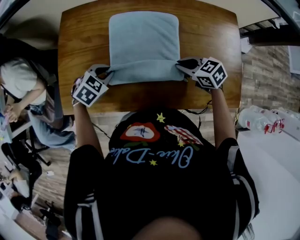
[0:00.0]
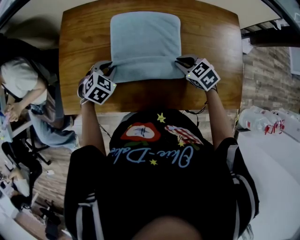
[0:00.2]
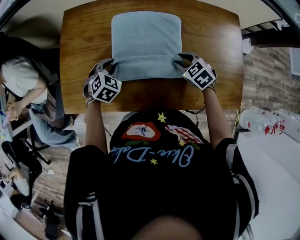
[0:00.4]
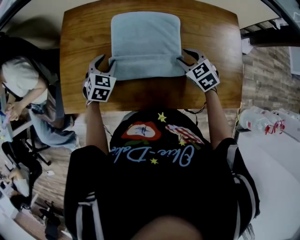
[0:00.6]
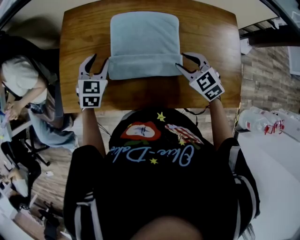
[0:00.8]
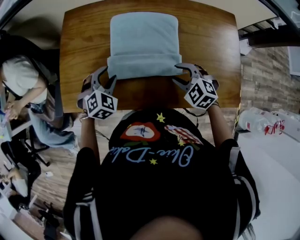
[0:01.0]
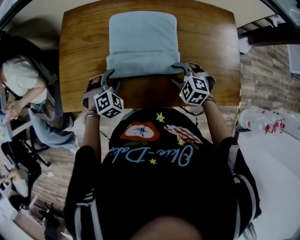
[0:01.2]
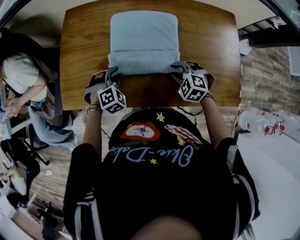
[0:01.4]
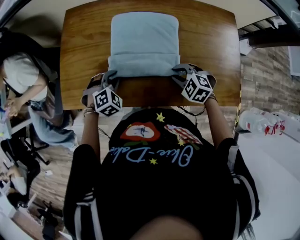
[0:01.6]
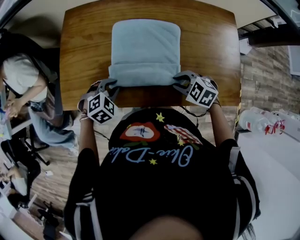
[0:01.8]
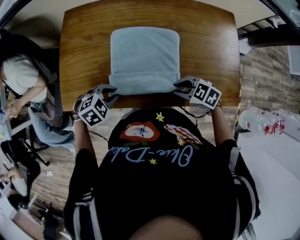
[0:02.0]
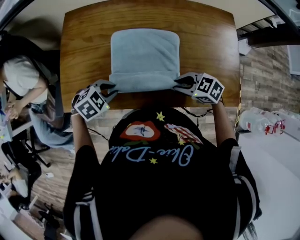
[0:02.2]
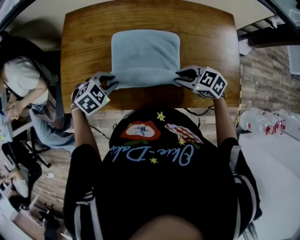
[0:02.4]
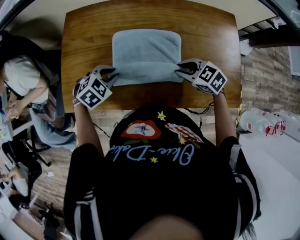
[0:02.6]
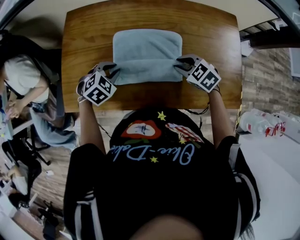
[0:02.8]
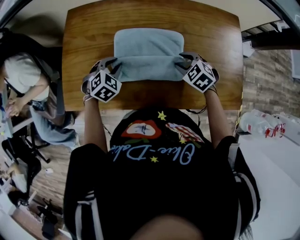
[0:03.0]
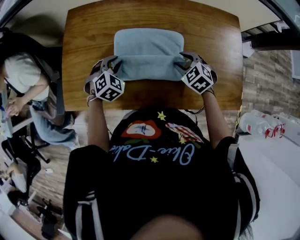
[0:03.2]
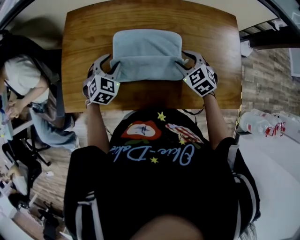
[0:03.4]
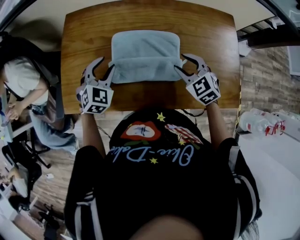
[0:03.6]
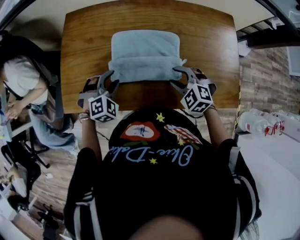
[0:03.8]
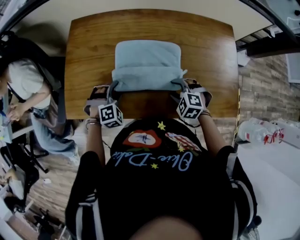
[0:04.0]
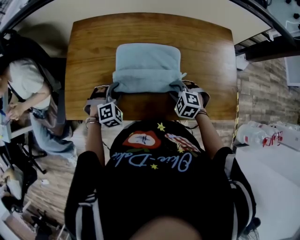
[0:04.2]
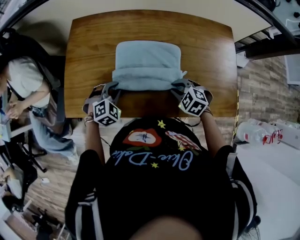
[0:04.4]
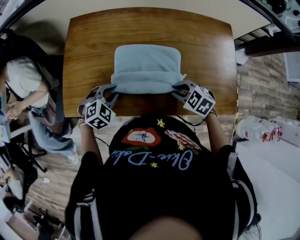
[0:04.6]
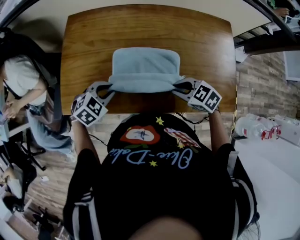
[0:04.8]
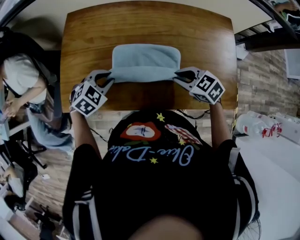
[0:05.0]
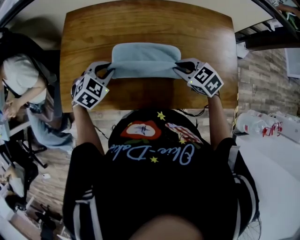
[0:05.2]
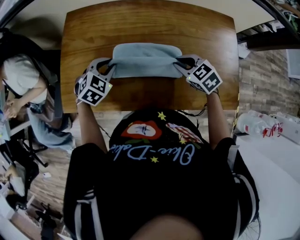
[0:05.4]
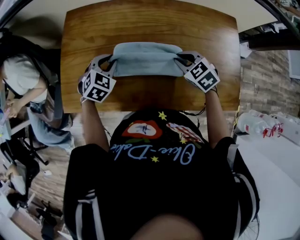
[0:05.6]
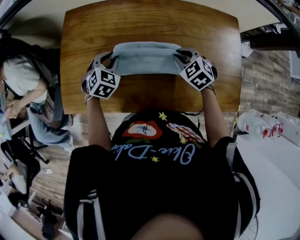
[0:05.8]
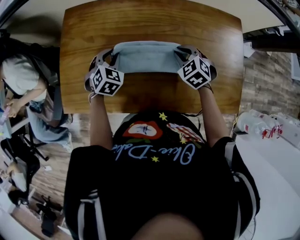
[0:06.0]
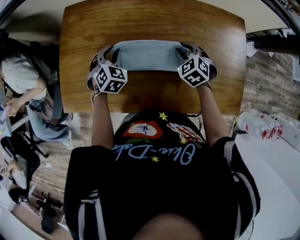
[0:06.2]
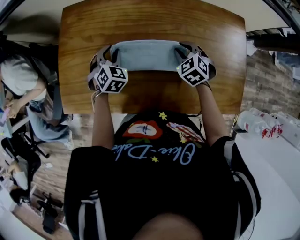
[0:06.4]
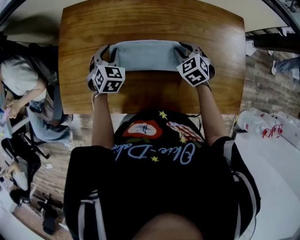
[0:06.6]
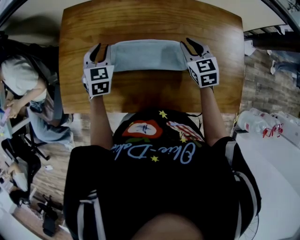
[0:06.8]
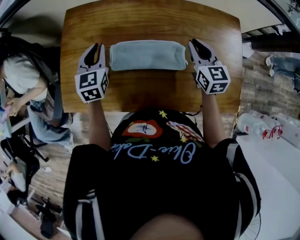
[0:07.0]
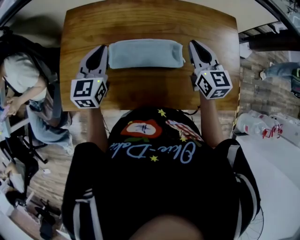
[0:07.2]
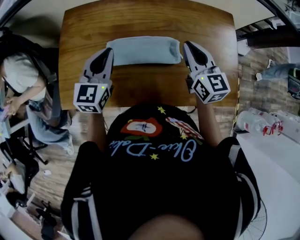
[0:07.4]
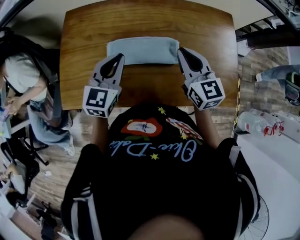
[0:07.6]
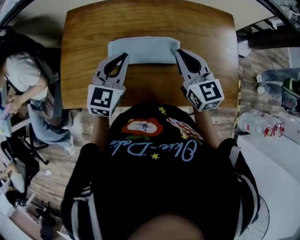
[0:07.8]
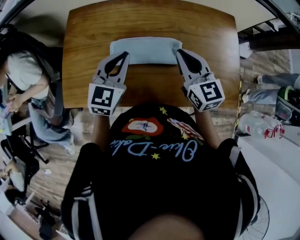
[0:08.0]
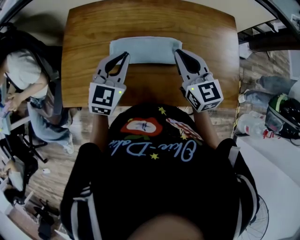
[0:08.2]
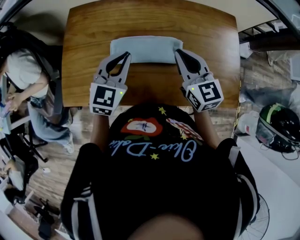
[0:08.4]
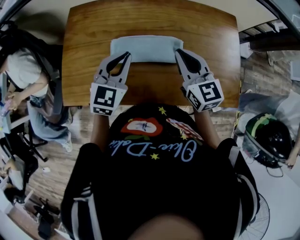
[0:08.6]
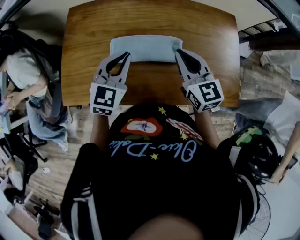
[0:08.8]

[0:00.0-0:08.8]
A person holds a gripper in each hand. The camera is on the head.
0:00.0 to 0:01.4: The left gripper goes forward and returns, about 5 cm each way, and swivels roughly 30 degrees. The right gripper ends up about 5 cm from where it was, and swivels some 40 degrees.
0:01.4 to 0:03.0: The right gripper moves approximately 5 cm.
0:03.0 to 0:04.4: Both grippers travel together backward, approximately 5 cm. The left gripper travels upward and back again, some 5 cm each way, and opens and closes again, while the right gripper goes upward and returns, approximately 5 cm each way, and closes its fingers.
0:04.4 to 0:05.8: The right gripper changes place by about 10 cm; the left gripper ends up about 10 cm from where it was, and rotates approximately 20 degrees.
0:05.8 to 0:07.4: Both grippers move upward, some 15 cm. The right gripper tips its fingers upward by approximately 40 degrees. Meanwhile the left gripper tips its fingers upward by approximately 30 degrees.
0:07.4 to 0:08.8: The right gripper shifts by roughly 5 cm; the left gripper ends up approximately 5 cm from where it was.

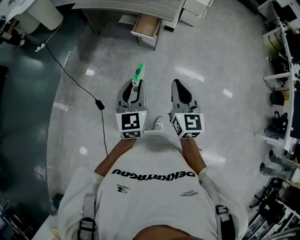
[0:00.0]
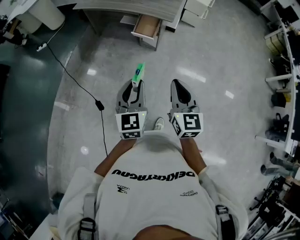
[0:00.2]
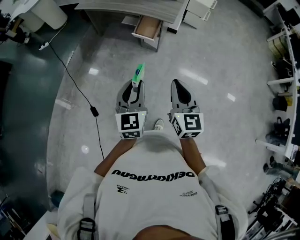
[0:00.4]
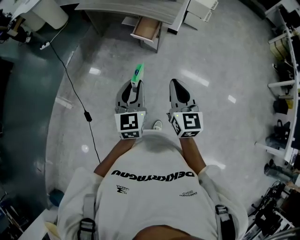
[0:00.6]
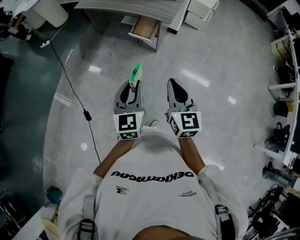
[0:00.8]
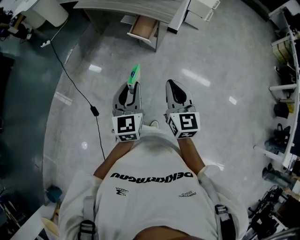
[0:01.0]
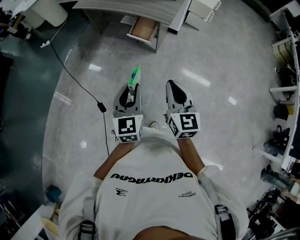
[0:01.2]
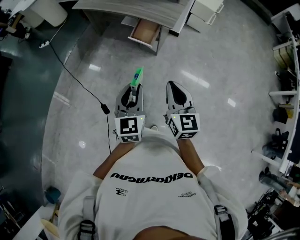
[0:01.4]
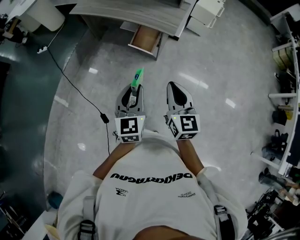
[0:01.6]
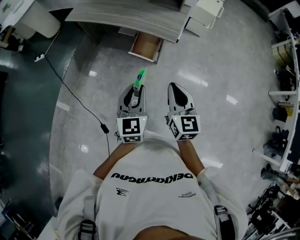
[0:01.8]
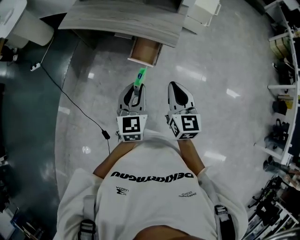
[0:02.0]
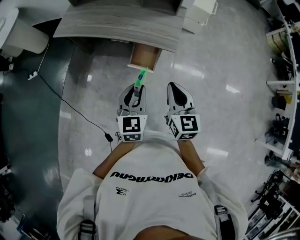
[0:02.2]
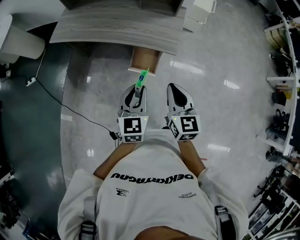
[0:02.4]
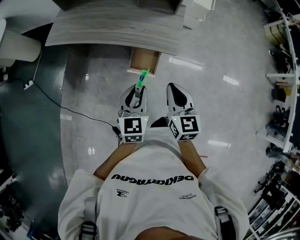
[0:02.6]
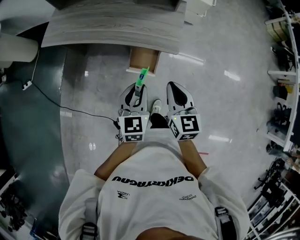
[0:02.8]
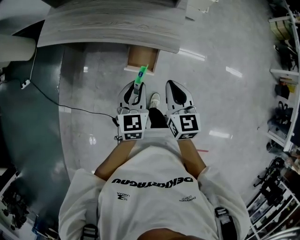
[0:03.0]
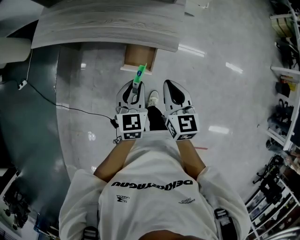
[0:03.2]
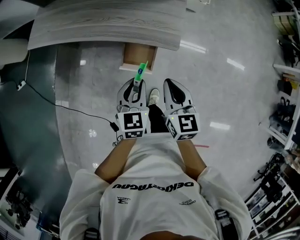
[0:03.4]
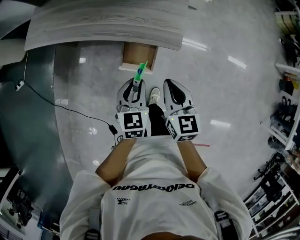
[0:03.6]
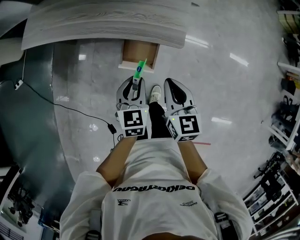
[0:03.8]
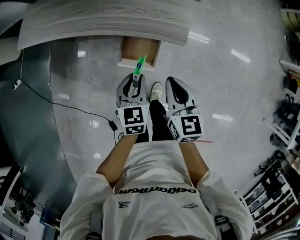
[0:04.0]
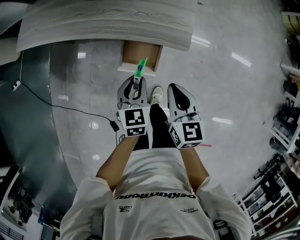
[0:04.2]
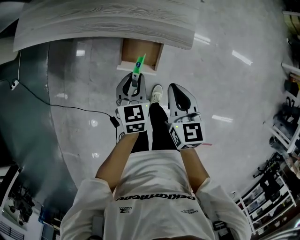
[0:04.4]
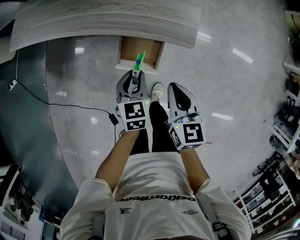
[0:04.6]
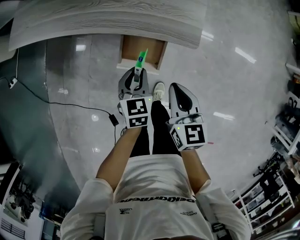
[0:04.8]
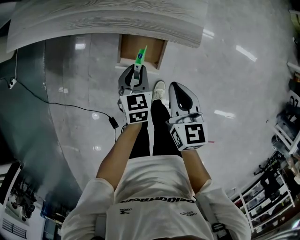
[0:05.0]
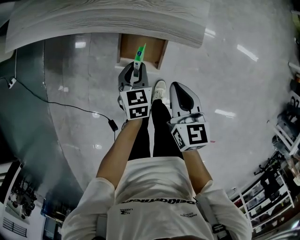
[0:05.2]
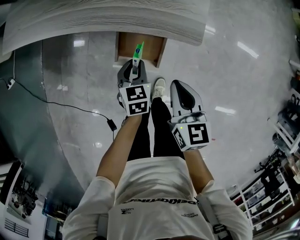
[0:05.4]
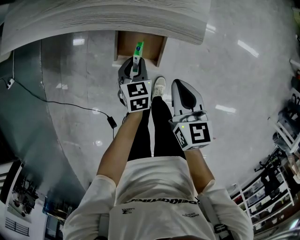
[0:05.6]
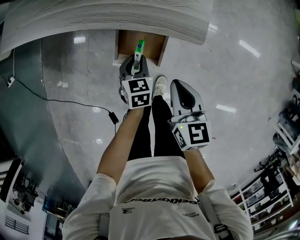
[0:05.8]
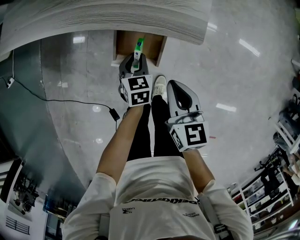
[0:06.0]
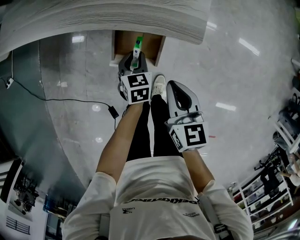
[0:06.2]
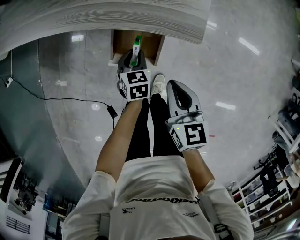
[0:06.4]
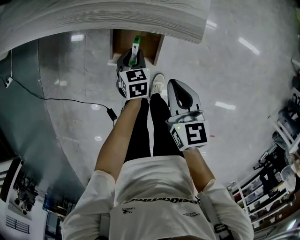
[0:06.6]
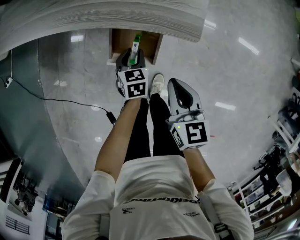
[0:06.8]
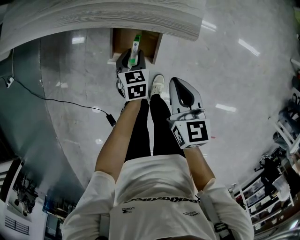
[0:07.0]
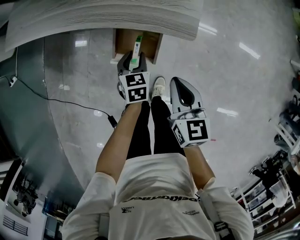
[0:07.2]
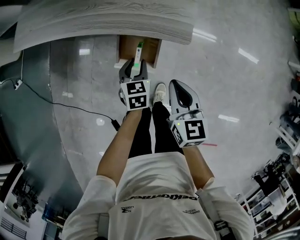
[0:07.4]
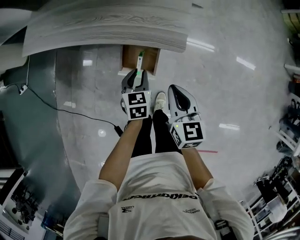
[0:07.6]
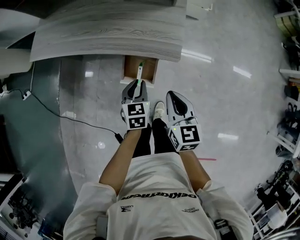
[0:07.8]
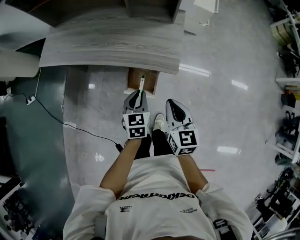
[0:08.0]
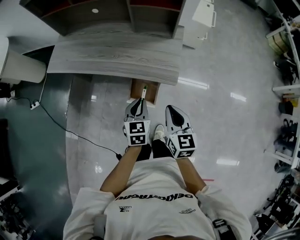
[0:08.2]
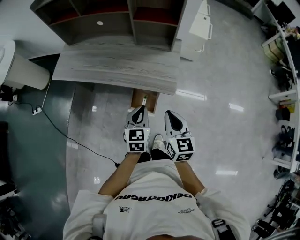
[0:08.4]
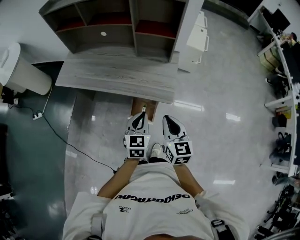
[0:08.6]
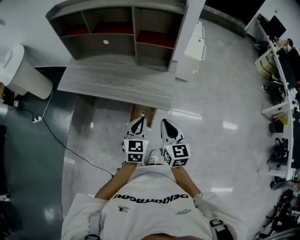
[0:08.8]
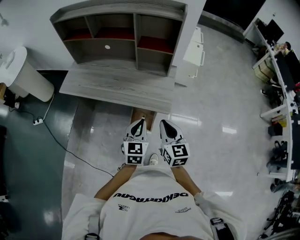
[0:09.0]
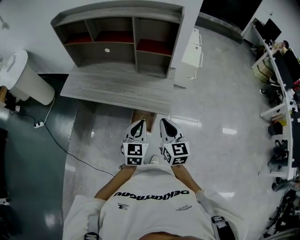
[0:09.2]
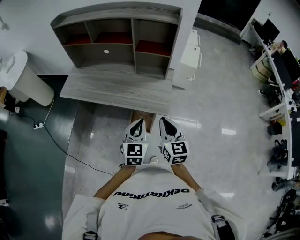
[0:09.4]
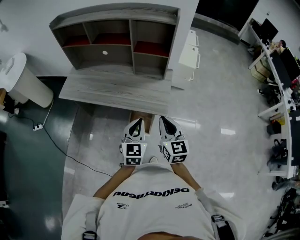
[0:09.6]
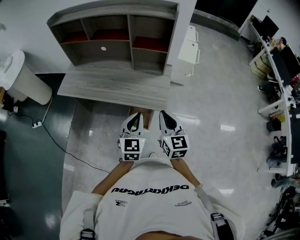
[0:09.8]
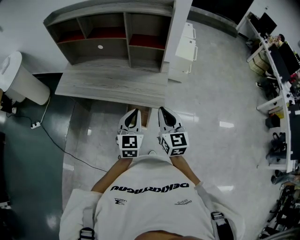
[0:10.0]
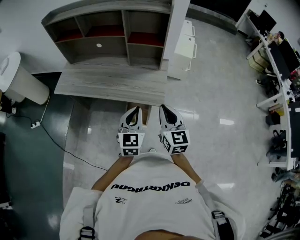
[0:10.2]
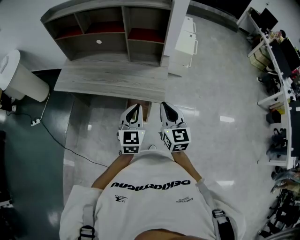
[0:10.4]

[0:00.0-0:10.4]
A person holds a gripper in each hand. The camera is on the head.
0:00.0 to 0:01.4: Both grippers move forward and to the right, about 10 cm.
0:01.4 to 0:03.0: Both grippers move forward, about 30 cm. The left gripper turns by approximately 20 degrees.
0:03.0 to 0:04.4: The grippers both shift downward by approximately 15 cm.
0:04.4 to 0:06.0: The right gripper heads downward, covering about 5 cm, while the left gripper is displaced downward by some 15 cm.
0:06.0 to 0:07.4: The left gripper moves upward, some 5 cm.
0:07.4 to 0:09.0: Both grippers move upward, roughly 30 cm. The left gripper swivels about 30 degrees, and closes up.
0:09.0 to 0:10.4: The right gripper changes place by about 5 cm.

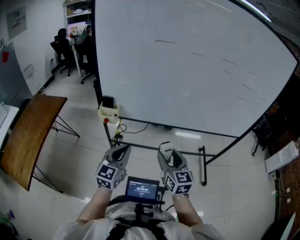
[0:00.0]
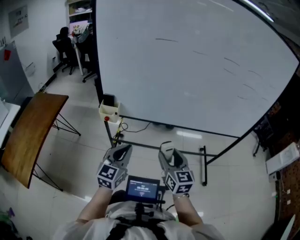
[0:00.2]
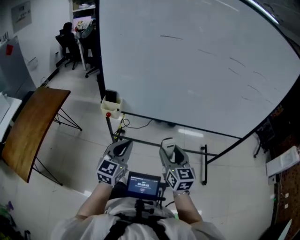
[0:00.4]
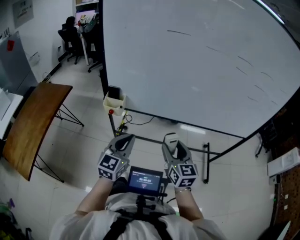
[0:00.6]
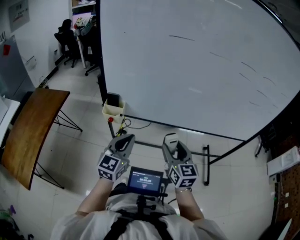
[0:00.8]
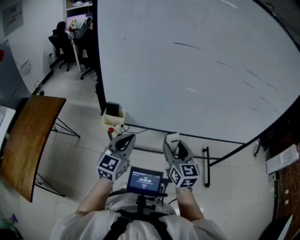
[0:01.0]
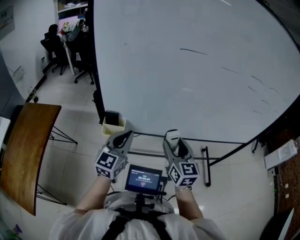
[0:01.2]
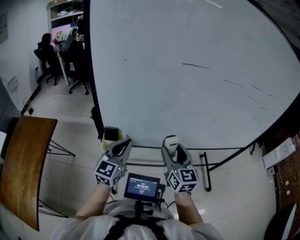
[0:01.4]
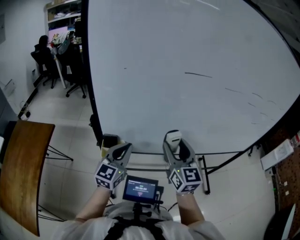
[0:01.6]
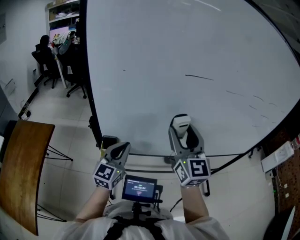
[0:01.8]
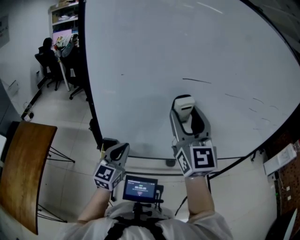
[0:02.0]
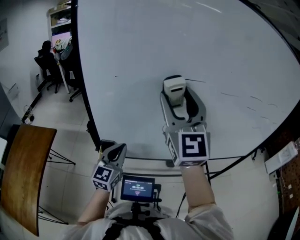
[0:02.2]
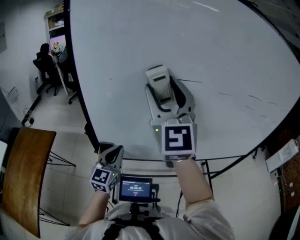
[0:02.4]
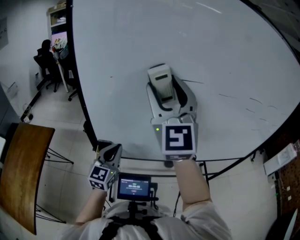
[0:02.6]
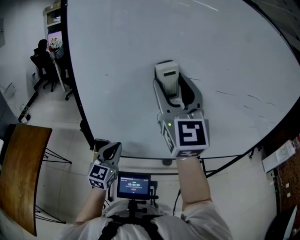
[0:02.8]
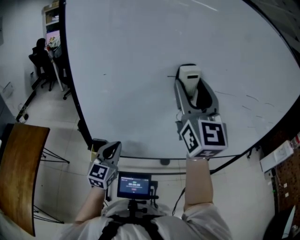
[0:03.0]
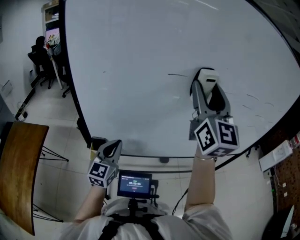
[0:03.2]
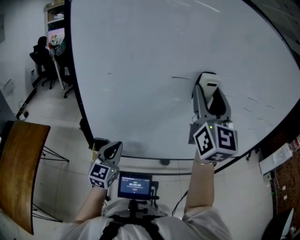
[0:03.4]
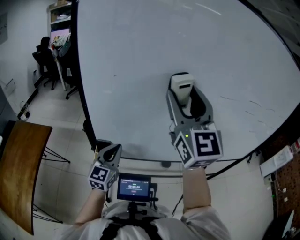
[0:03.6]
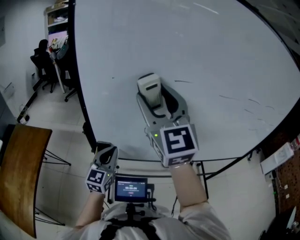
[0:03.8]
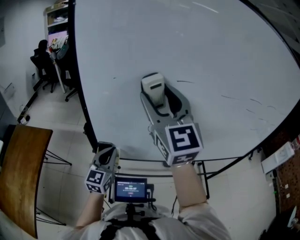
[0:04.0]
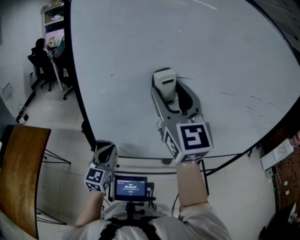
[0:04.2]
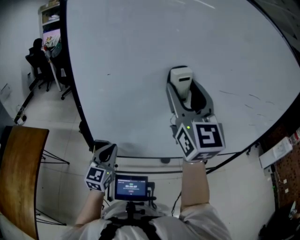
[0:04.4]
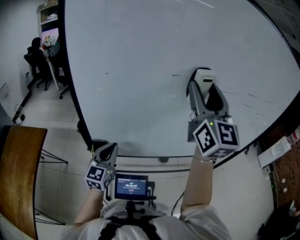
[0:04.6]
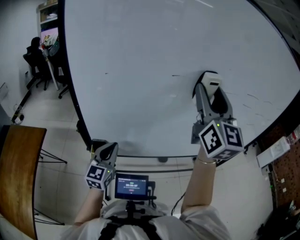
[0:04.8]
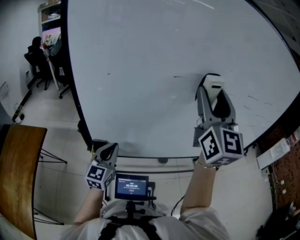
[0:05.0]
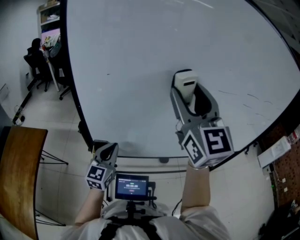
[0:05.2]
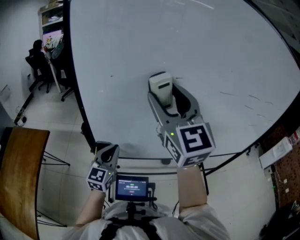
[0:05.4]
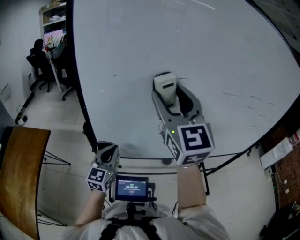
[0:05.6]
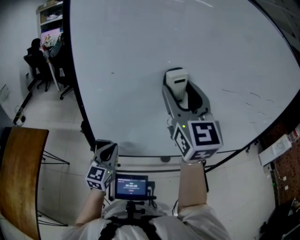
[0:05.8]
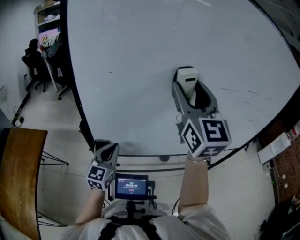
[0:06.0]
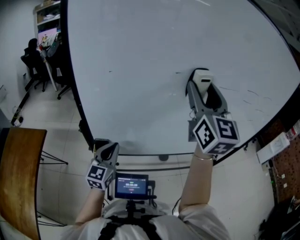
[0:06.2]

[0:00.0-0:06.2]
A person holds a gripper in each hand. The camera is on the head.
0:00.0 to 0:01.6: The left gripper moves forward and to the left, roughly 25 cm. Meanwhile the right gripper travels forward, upward and to the left by roughly 25 cm.
0:01.6 to 0:03.2: The right gripper is displaced upward by about 25 cm, and swivels approximately 20 degrees.
0:03.2 to 0:04.6: The right gripper moves roughly 20 cm to the left and comes back.
0:04.6 to 0:06.2: The right gripper reaches some 15 cm to the left, then returns.
